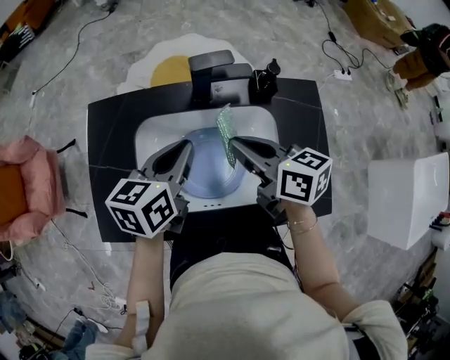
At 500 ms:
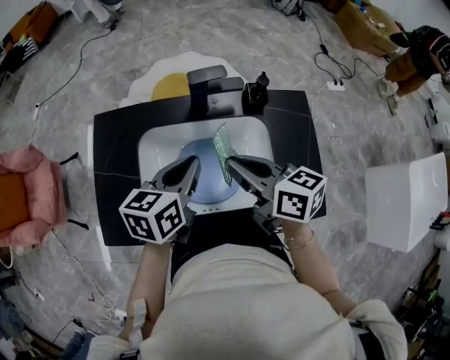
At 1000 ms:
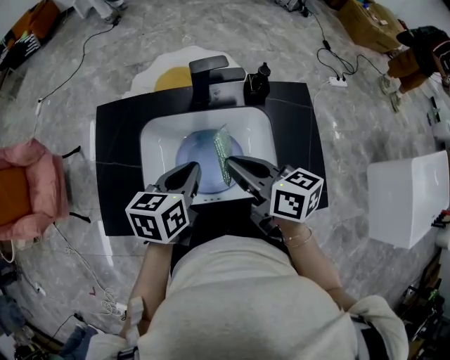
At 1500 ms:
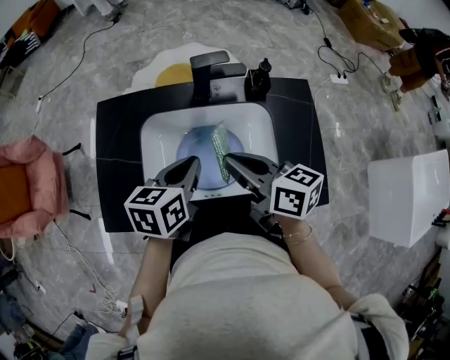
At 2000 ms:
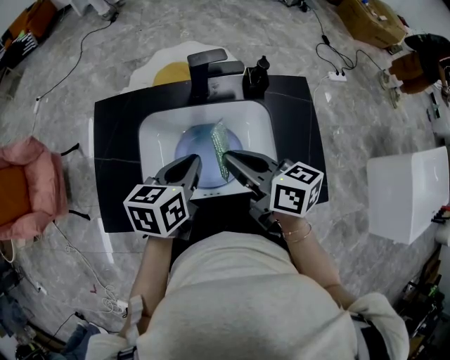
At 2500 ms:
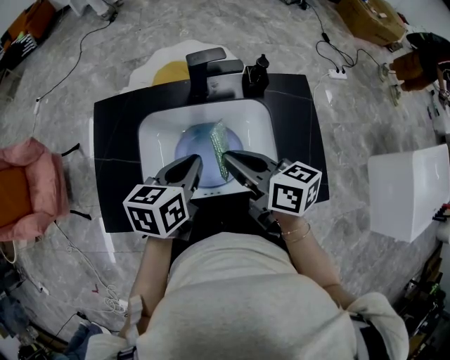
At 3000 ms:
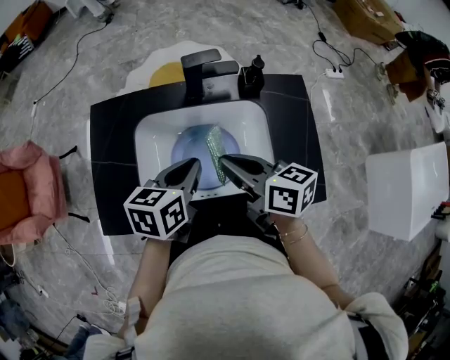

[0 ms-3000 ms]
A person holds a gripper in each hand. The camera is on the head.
0 ms to 1500 ms: Both grippers travel together backward, roughly 5 cm.
1500 ms to 3000 ms: The grippers stay close to where they were, moving slightly.

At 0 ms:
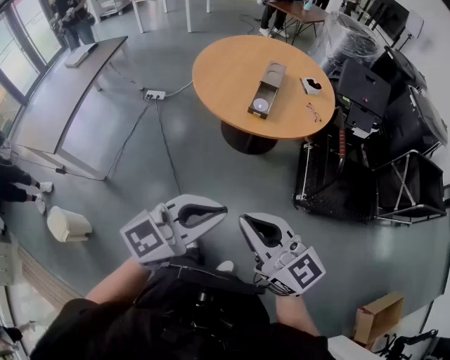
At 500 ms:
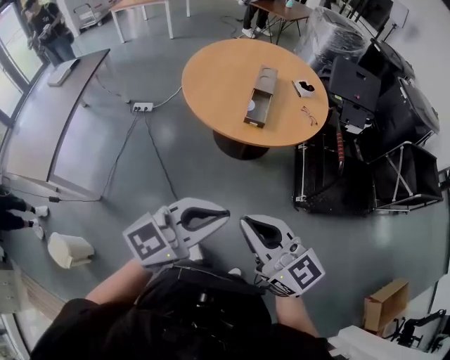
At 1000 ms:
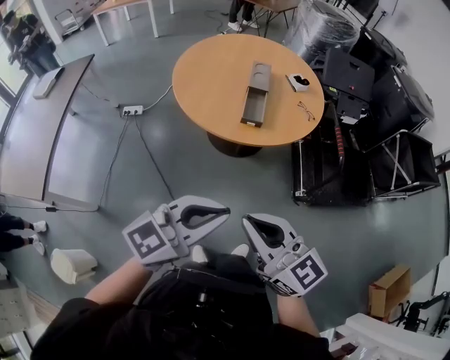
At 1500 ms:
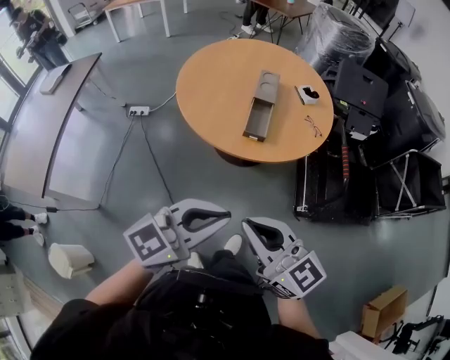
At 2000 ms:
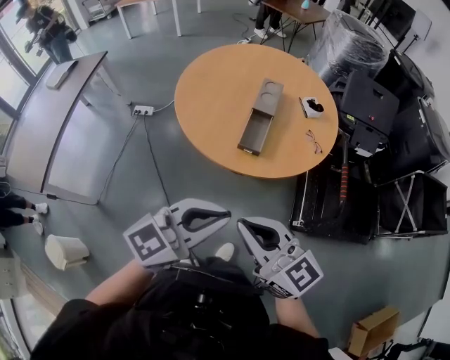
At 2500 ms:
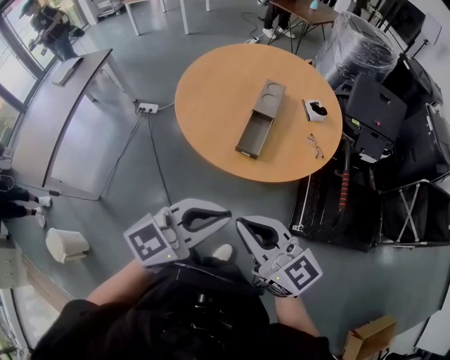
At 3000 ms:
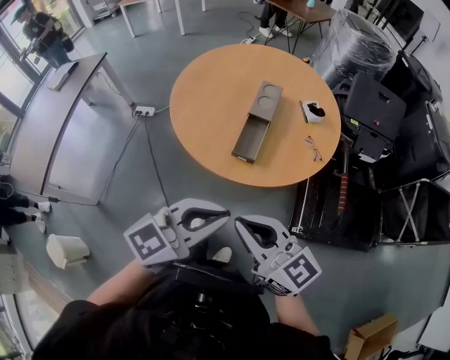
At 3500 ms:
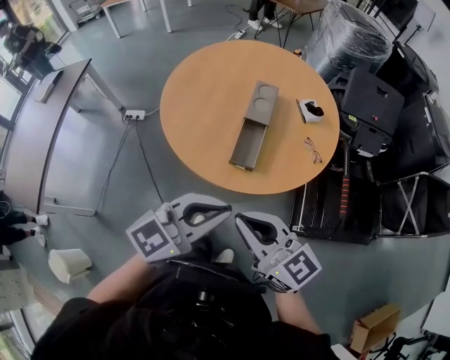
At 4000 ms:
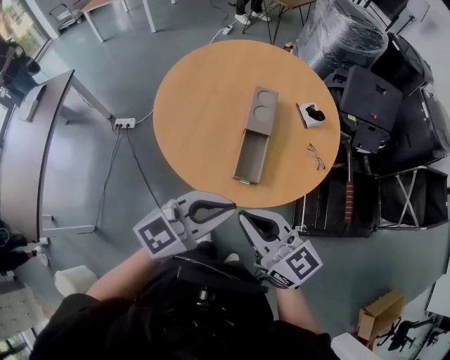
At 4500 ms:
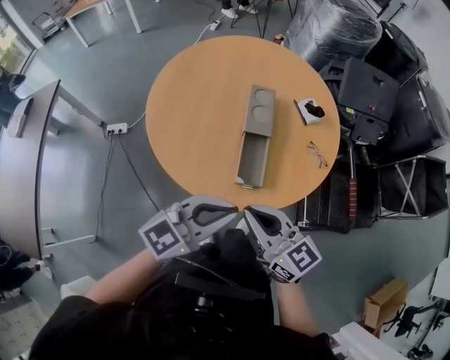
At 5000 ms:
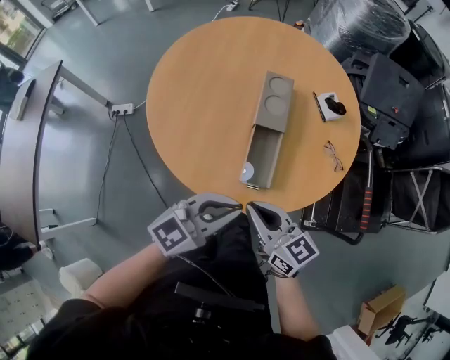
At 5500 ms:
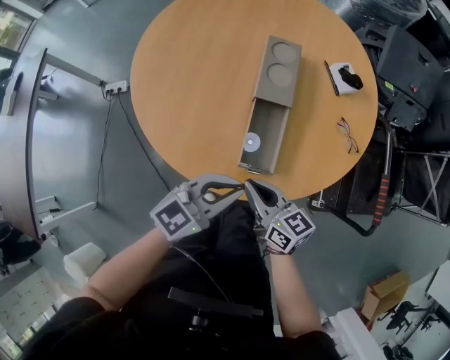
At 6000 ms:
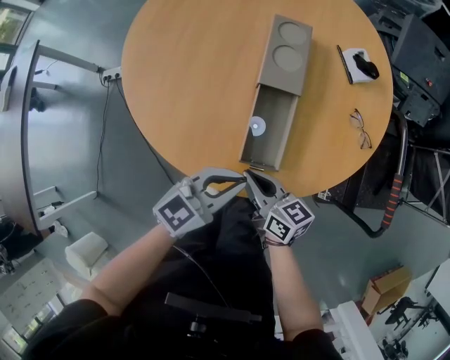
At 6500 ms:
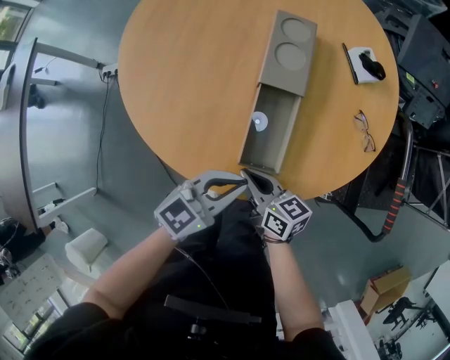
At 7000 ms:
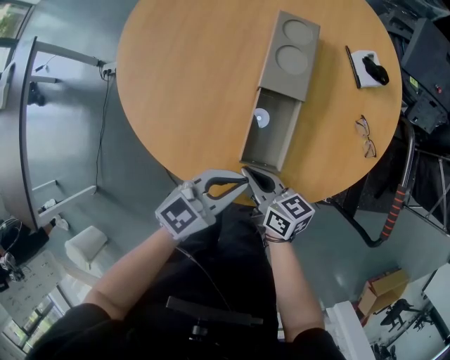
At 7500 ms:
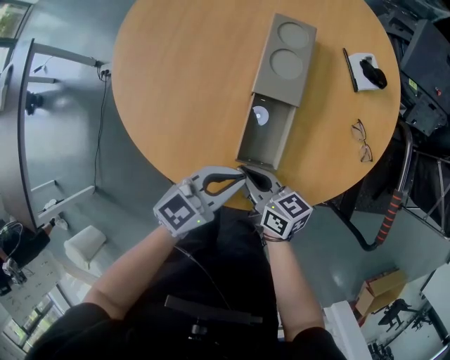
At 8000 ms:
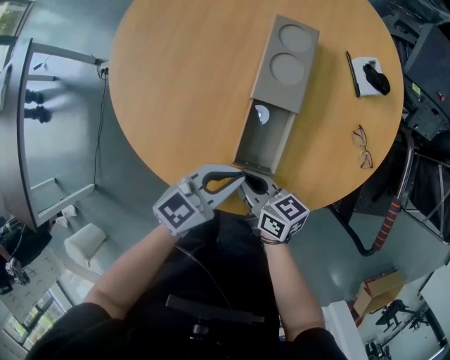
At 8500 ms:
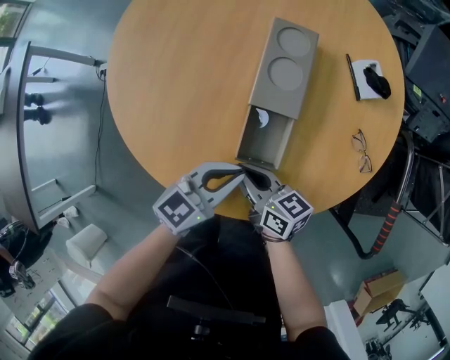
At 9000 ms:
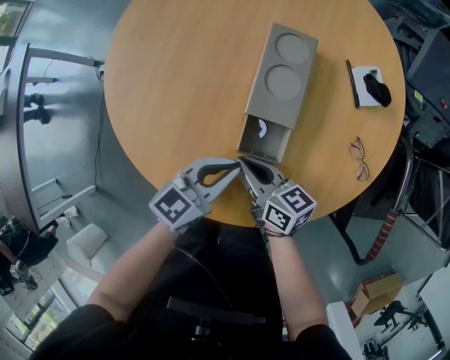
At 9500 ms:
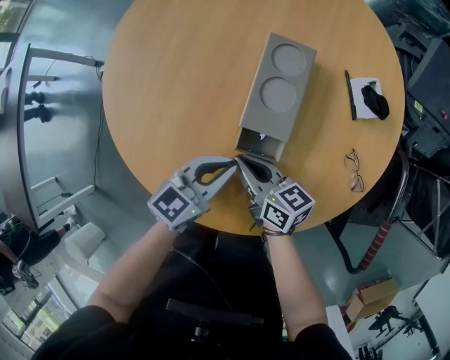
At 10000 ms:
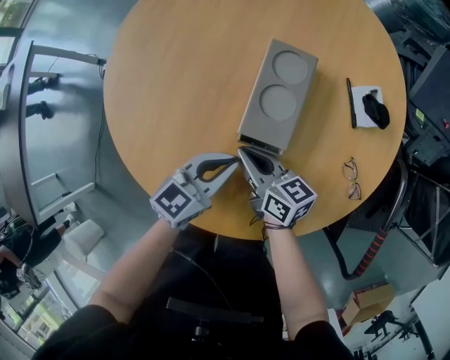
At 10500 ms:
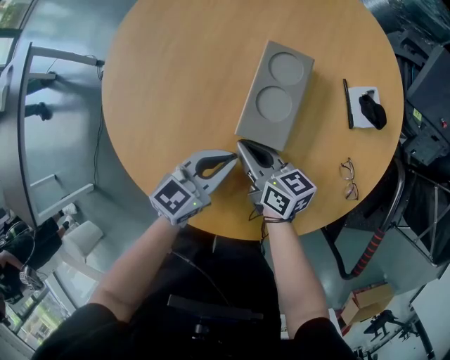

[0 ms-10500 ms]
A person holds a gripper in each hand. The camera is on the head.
0 ms to 2000 ms: The grippers both shift forward by about 30 cm.
2000 ms to 4000 ms: The grippers both shift forward by approximately 25 cm.
4000 ms to 6500 ms: The grippers both shift downward and forward by about 40 cm. The right gripper turns by about 40 degrees.
6500 ms to 8500 ms: Both grippers travel together forward, about 10 cm.
8500 ms to 10500 ms: The grippers both shift forward by about 15 cm.

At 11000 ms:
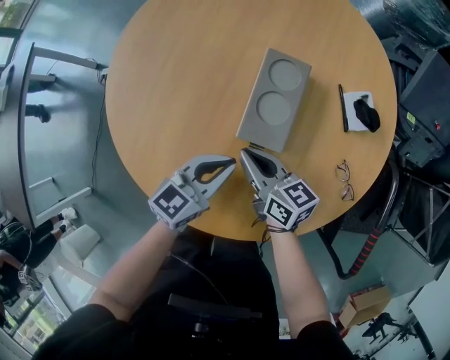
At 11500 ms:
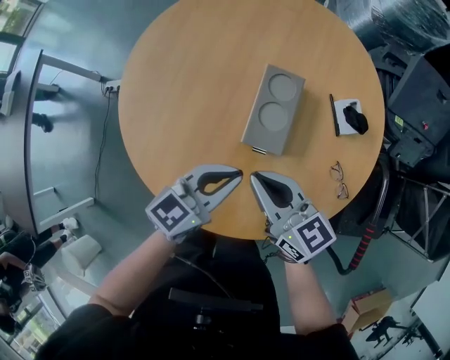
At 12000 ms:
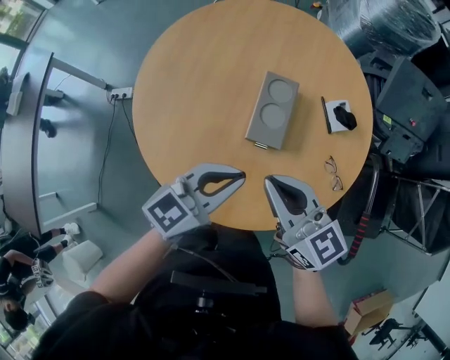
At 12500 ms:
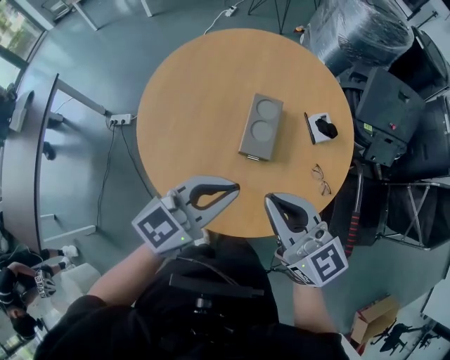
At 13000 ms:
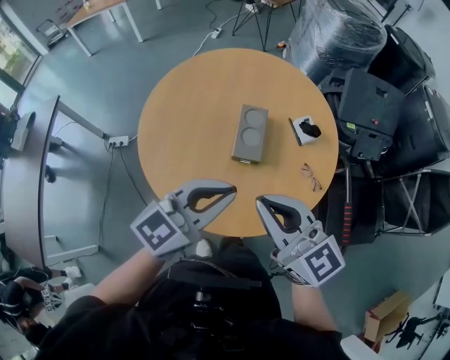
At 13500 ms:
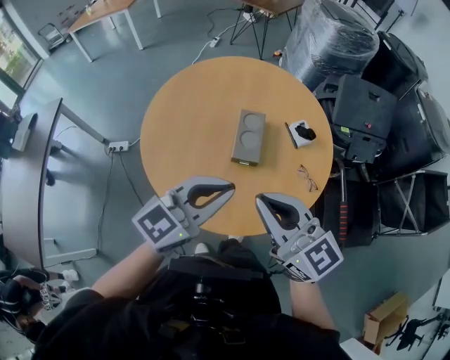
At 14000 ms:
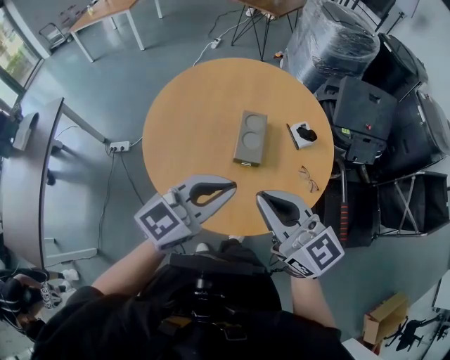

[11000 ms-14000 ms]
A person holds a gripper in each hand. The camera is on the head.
11000 ms to 12500 ms: Both grippers travel together upward, approximately 35 cm. The right gripper turns by some 40 degrees. Meanwhile the left gripper turns by roughly 20 degrees.
12500 ms to 14000 ms: The two grippers go some 15 cm upward and backward.

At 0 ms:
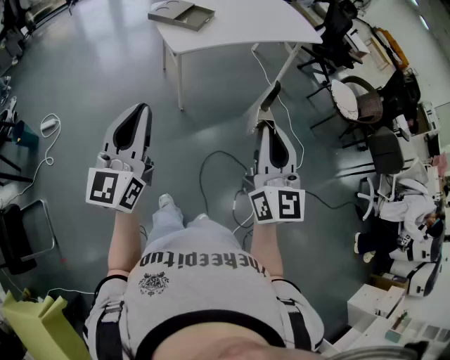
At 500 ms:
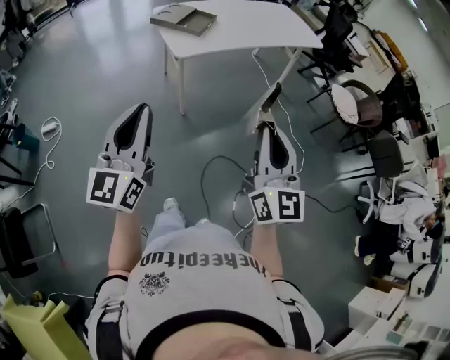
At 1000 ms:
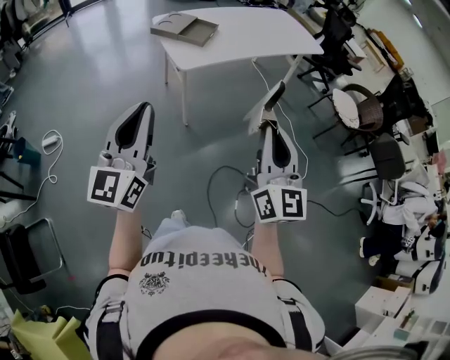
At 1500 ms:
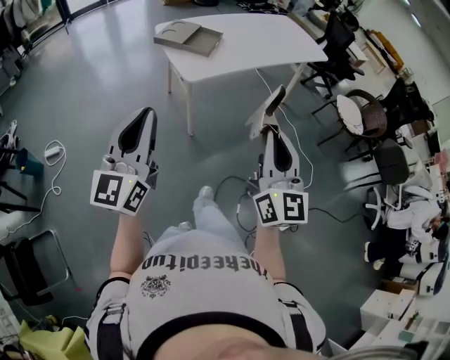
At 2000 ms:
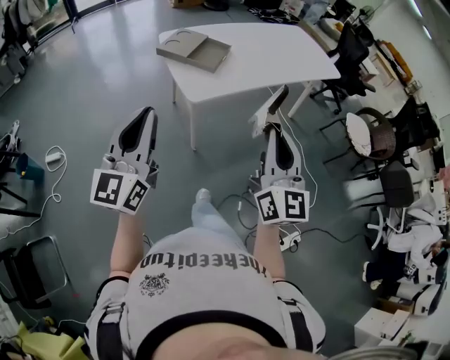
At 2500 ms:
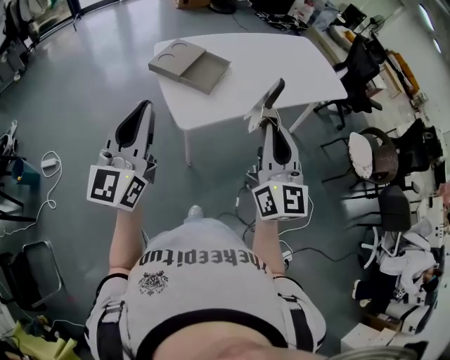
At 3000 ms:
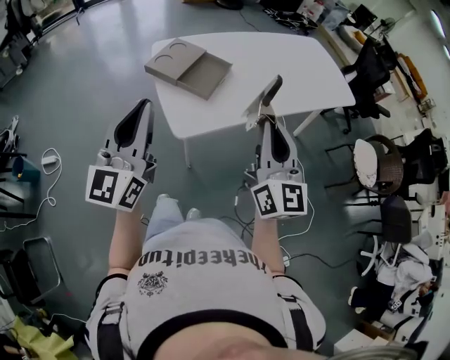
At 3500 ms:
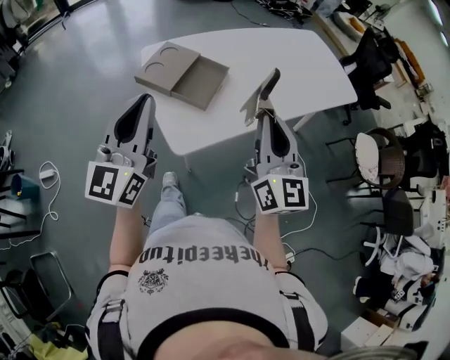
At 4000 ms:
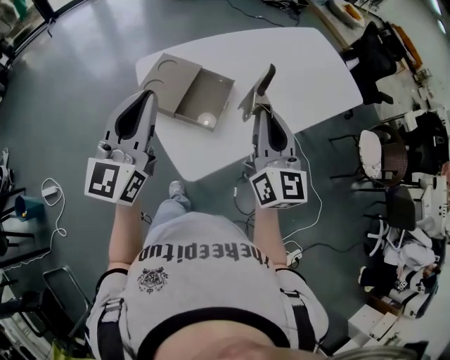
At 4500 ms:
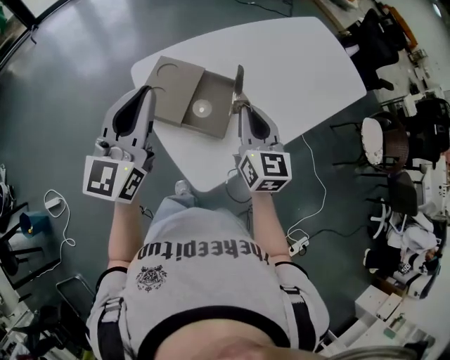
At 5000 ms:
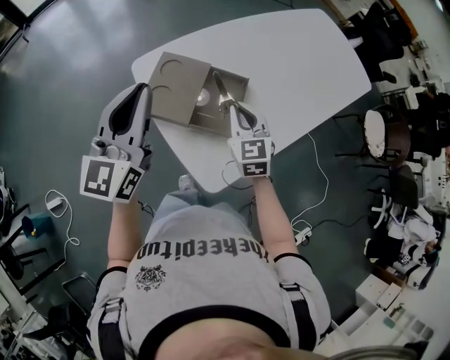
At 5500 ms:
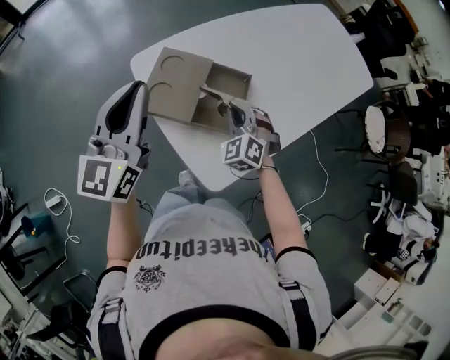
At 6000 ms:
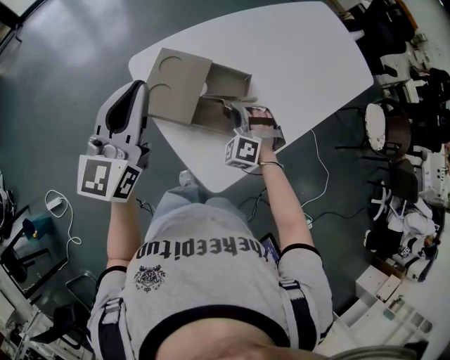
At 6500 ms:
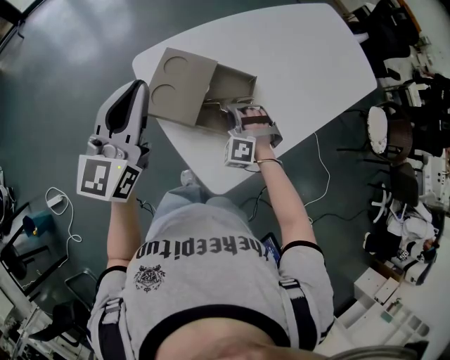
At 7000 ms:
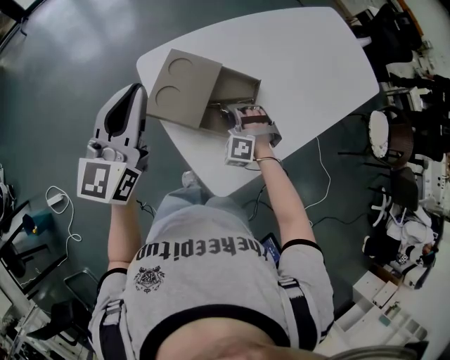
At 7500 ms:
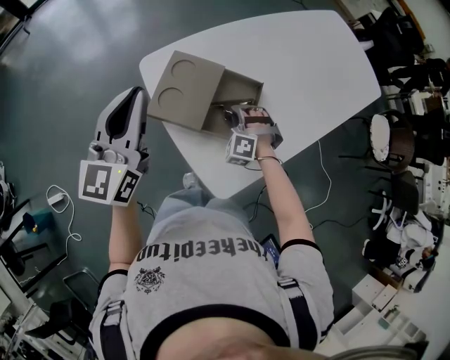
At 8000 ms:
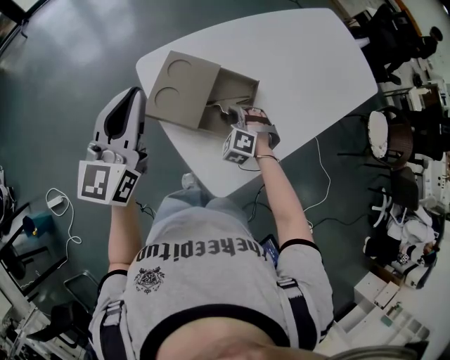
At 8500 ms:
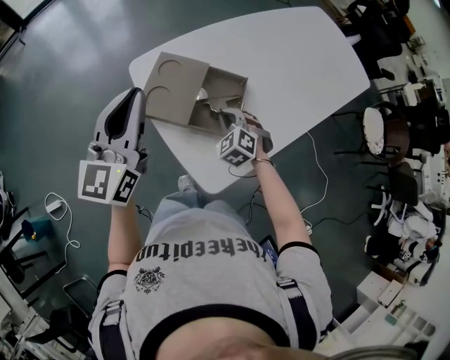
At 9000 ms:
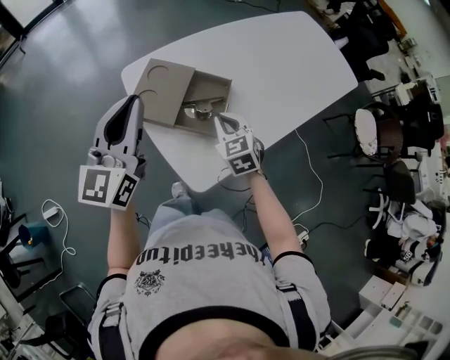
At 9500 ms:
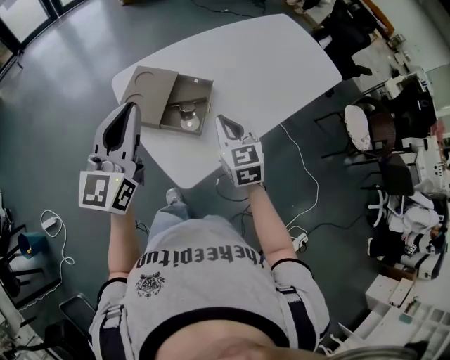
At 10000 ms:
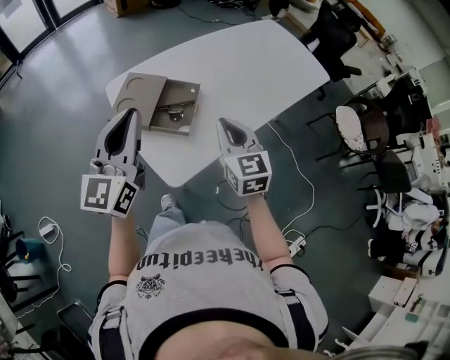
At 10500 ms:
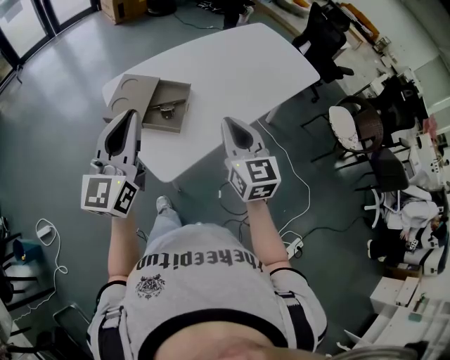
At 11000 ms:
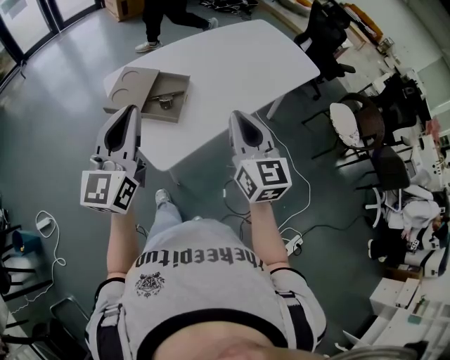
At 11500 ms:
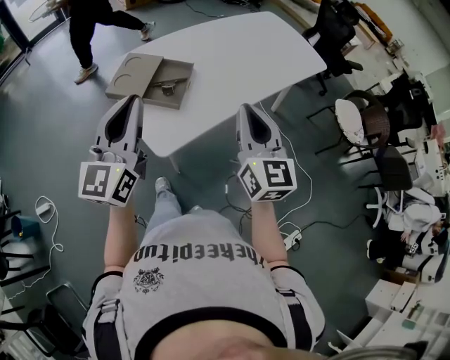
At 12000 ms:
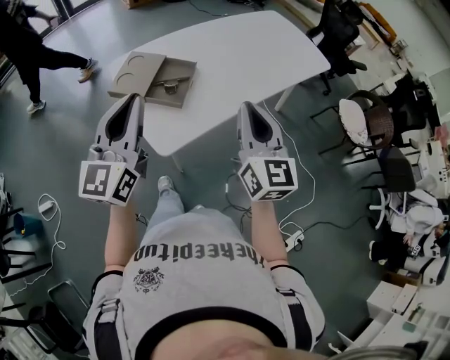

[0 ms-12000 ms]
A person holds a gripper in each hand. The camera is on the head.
0 ms to 2000 ms: The right gripper moves forward, roughly 25 cm; the left gripper goes about 25 cm forward and to the left.
2000 ms to 4000 ms: Both grippers are carried forward, about 50 cm.
4000 ms to 6000 ms: The left gripper shifts some 15 cm forward, to the left and downward, while the right gripper travels downward, forward and to the left by some 35 cm, and rolls counterclockwise, seen from behind, by roughly 80 degrees.
6000 ms to 8000 ms: The right gripper moves downward, some 5 cm.
8000 ms to 10000 ms: The left gripper heads backward, to the right and upward, covering roughly 25 cm. Meanwhile the right gripper shifts some 35 cm upward, backward and to the right, and rolls clockwise, seen from behind, by about 60 degrees.
10000 ms to 12000 ms: The right gripper shifts about 15 cm backward, upward and to the right; the left gripper moves backward and to the right, approximately 10 cm.
